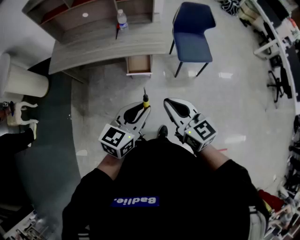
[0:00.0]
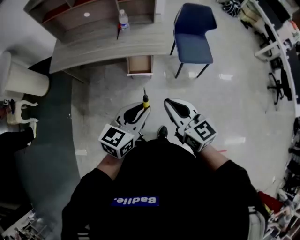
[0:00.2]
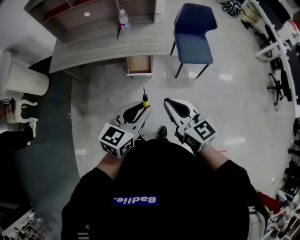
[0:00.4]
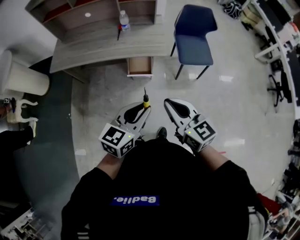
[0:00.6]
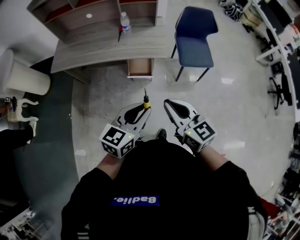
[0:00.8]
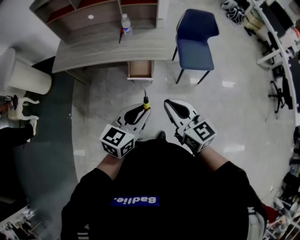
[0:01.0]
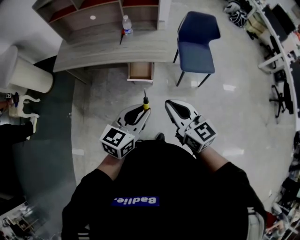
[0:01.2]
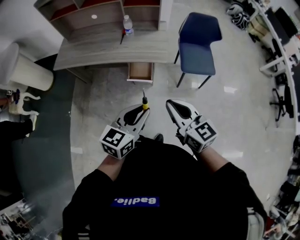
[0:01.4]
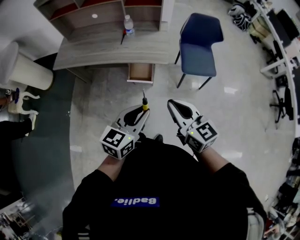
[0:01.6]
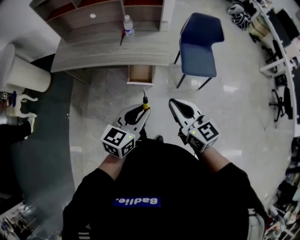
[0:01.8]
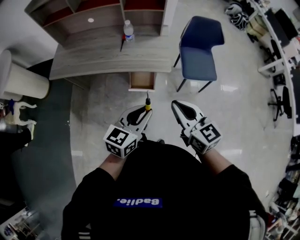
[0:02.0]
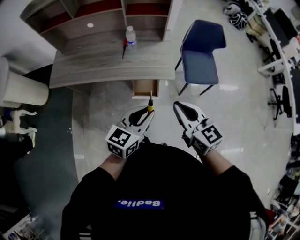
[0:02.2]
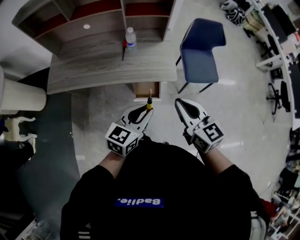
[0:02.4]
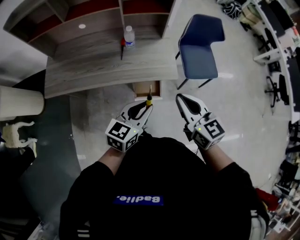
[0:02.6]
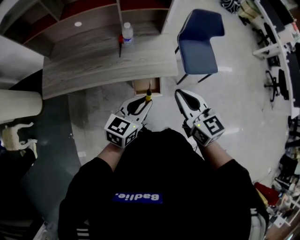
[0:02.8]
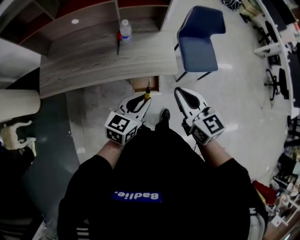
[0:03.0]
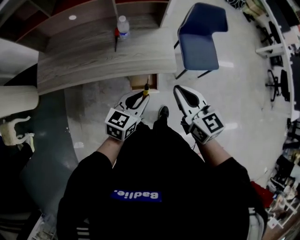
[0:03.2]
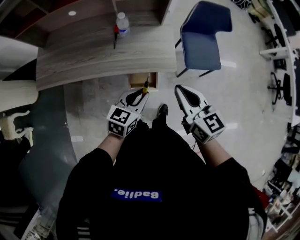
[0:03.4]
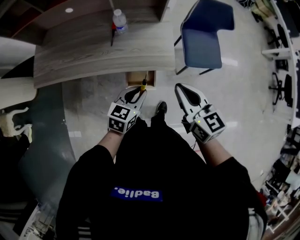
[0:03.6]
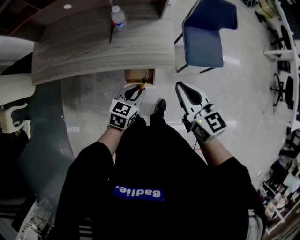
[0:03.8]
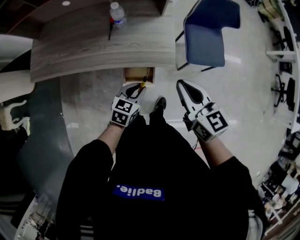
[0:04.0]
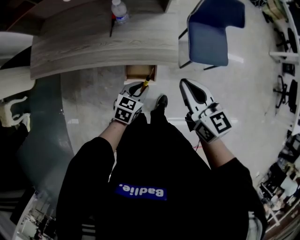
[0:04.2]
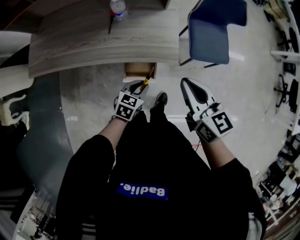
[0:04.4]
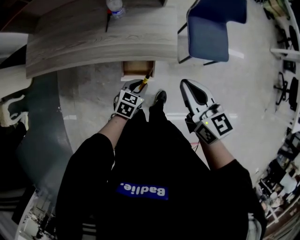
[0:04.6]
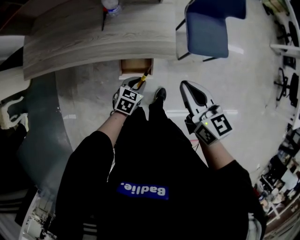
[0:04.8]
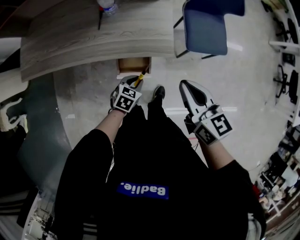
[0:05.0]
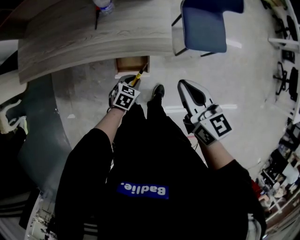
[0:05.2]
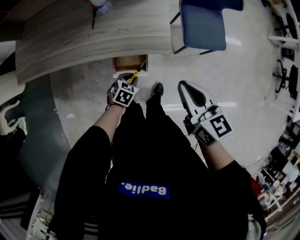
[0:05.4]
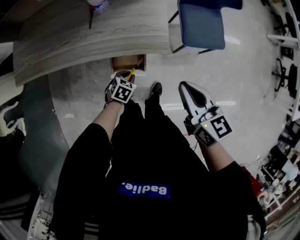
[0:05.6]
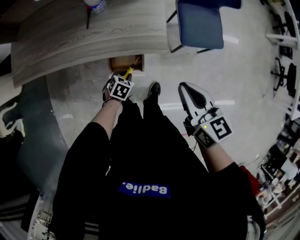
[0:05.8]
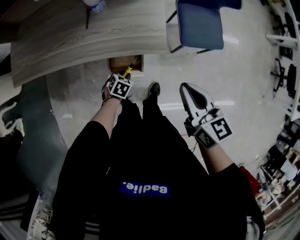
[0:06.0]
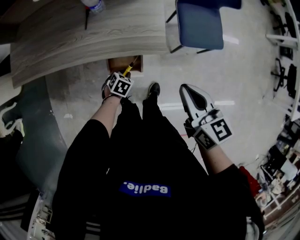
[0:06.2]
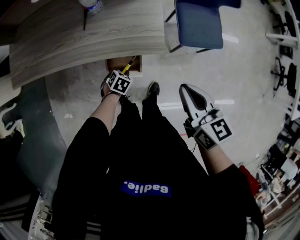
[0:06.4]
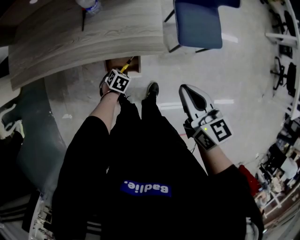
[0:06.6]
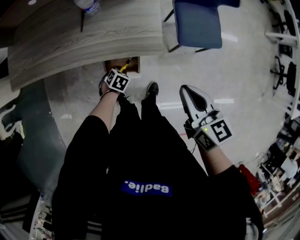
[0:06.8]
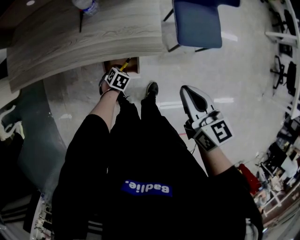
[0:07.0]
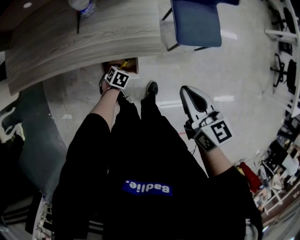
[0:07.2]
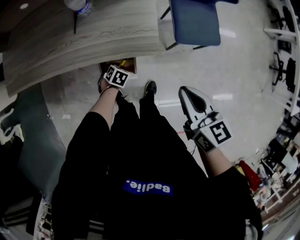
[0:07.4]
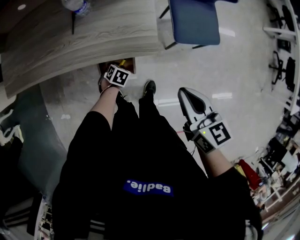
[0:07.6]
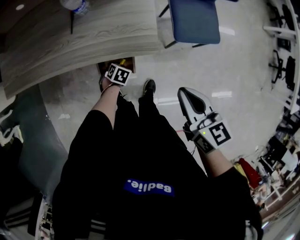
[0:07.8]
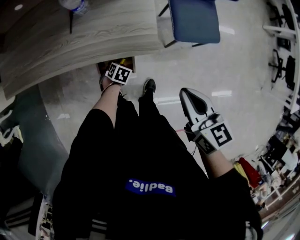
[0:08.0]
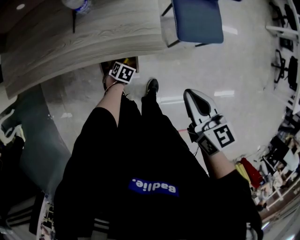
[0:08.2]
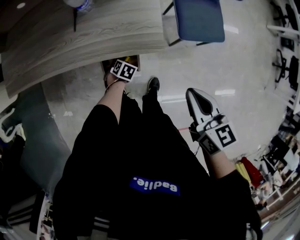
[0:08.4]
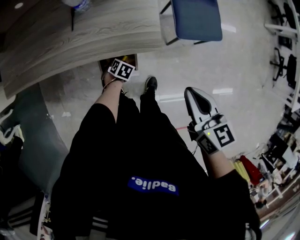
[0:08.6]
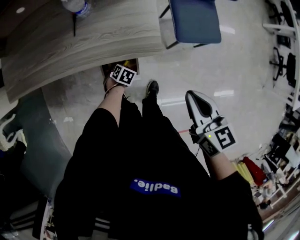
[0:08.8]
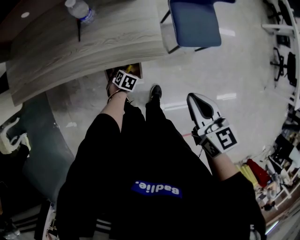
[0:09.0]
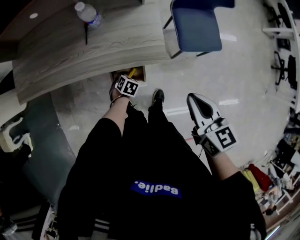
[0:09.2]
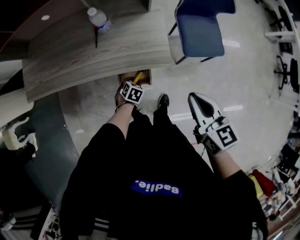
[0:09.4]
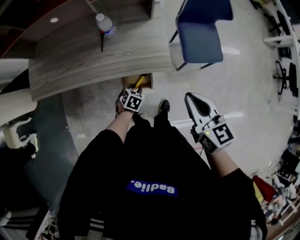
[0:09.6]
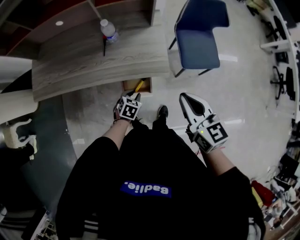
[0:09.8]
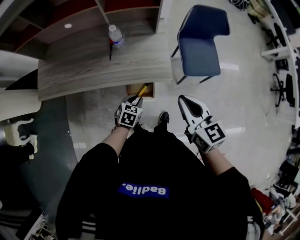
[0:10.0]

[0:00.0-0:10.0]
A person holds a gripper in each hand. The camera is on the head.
0:00.0 to 0:01.4: The right gripper changes place by roughly 5 cm.
0:01.4 to 0:02.8: The two grippers go roughly 25 cm forward and to the left.
0:02.8 to 0:04.2: The left gripper heads downward, covering approximately 20 cm, and turns by some 20 degrees. Meanwhile the right gripper travels to the right, forward and downward by about 10 cm.
0:04.2 to 0:05.8: The left gripper moves downward, roughly 20 cm, and turns by some 20 degrees, while the right gripper is displaced downward by about 5 cm.
0:05.8 to 0:07.2: The left gripper moves approximately 5 cm.
0:07.2 to 0:08.6: There are only small adjustments of the grippers.
0:08.6 to 0:10.0: The left gripper travels upward by some 25 cm, and turns by some 30 degrees, while the right gripper heads upward, covering some 10 cm.

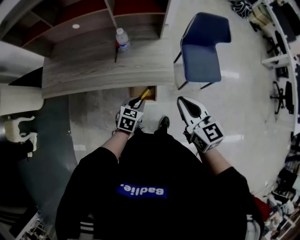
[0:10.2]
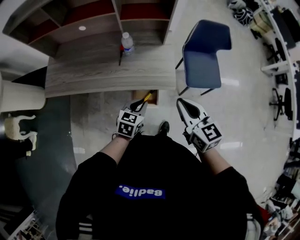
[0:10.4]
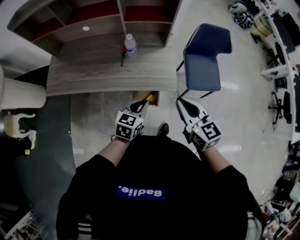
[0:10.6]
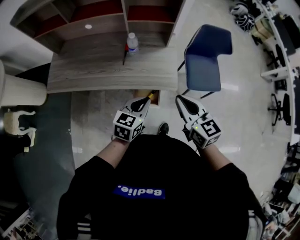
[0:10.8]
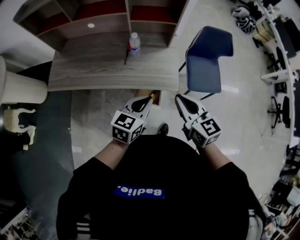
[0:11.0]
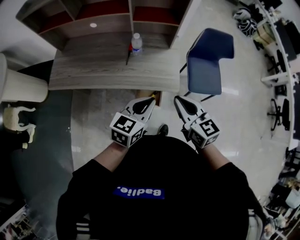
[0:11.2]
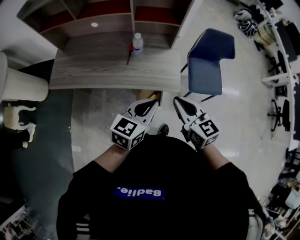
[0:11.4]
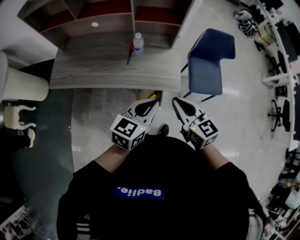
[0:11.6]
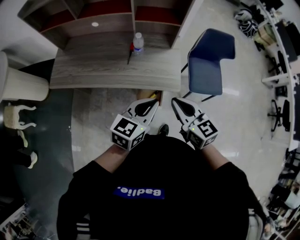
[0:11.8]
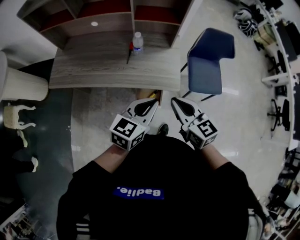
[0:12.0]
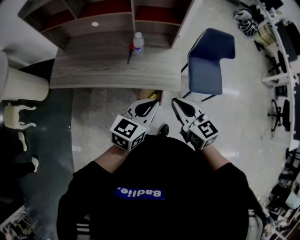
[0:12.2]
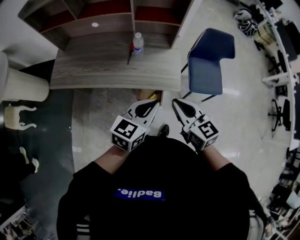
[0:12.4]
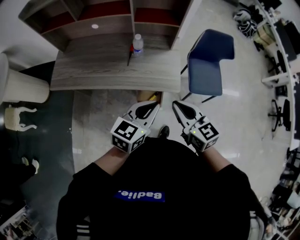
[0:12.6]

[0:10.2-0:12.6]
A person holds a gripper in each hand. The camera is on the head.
0:10.2 to 0:11.4: The left gripper is displaced upward by roughly 20 cm, and rotates roughly 30 degrees; the right gripper goes approximately 5 cm to the left.
0:11.4 to 0:12.6: The grippers stay close to where they were, moving slightly.

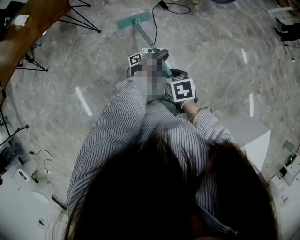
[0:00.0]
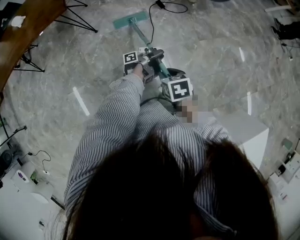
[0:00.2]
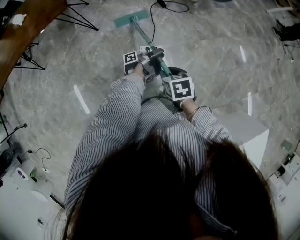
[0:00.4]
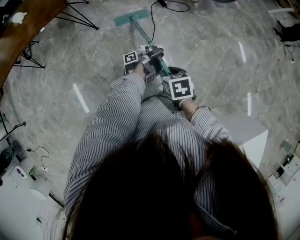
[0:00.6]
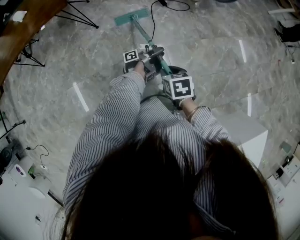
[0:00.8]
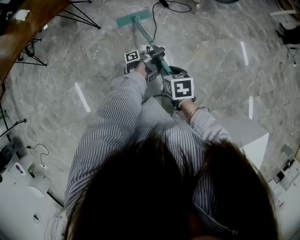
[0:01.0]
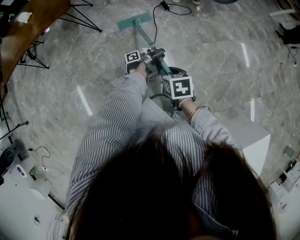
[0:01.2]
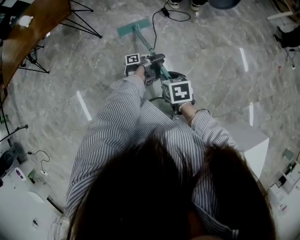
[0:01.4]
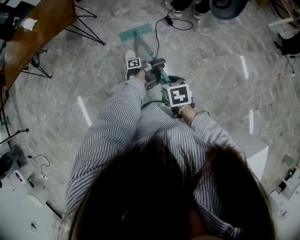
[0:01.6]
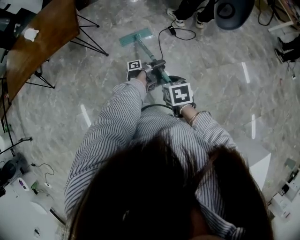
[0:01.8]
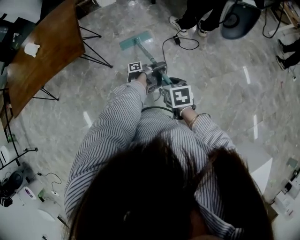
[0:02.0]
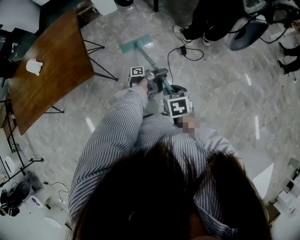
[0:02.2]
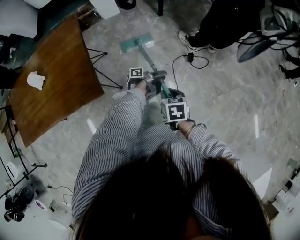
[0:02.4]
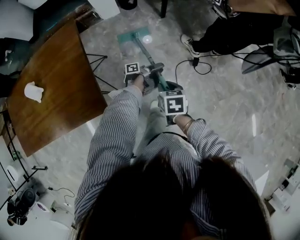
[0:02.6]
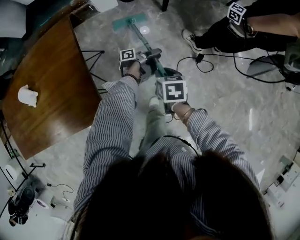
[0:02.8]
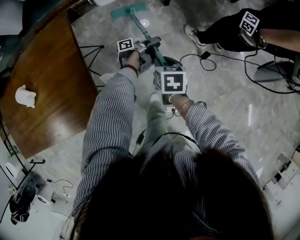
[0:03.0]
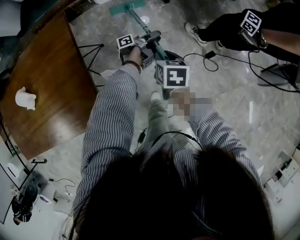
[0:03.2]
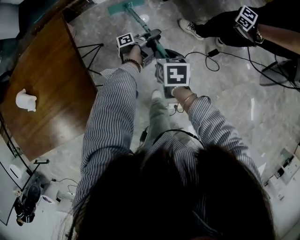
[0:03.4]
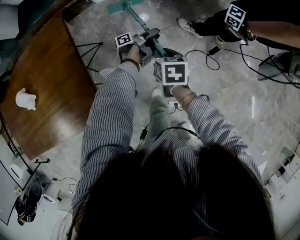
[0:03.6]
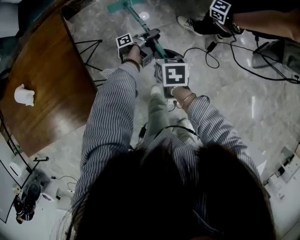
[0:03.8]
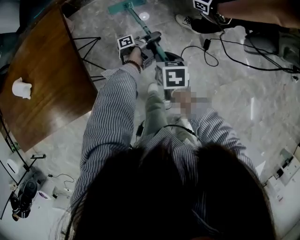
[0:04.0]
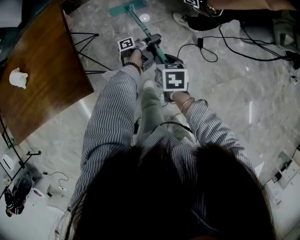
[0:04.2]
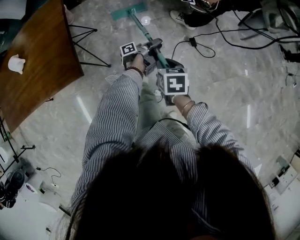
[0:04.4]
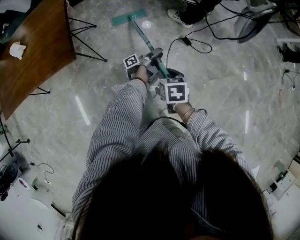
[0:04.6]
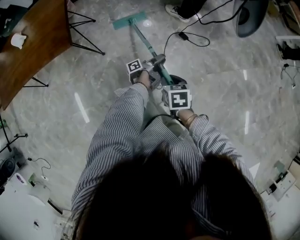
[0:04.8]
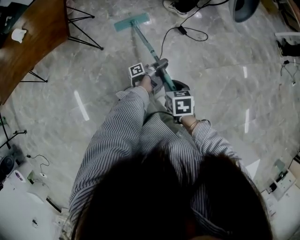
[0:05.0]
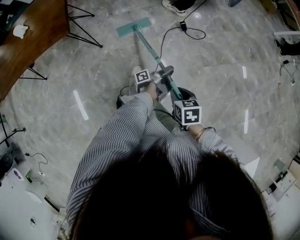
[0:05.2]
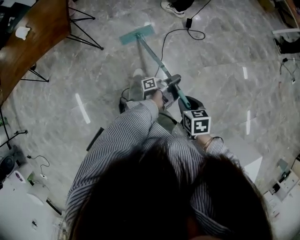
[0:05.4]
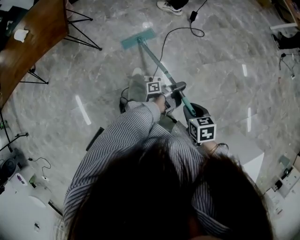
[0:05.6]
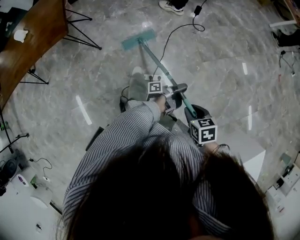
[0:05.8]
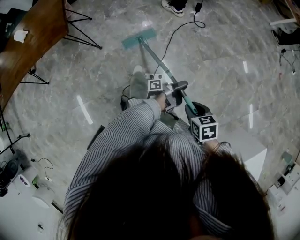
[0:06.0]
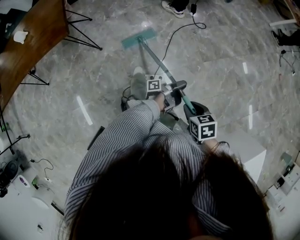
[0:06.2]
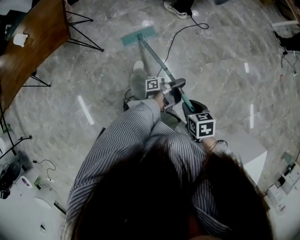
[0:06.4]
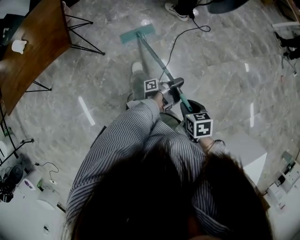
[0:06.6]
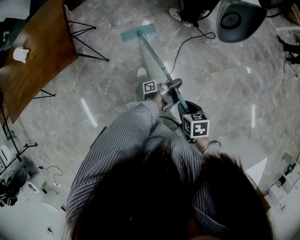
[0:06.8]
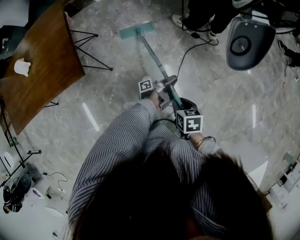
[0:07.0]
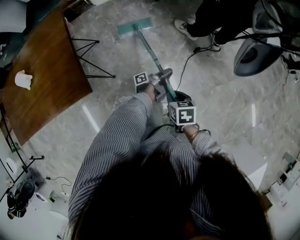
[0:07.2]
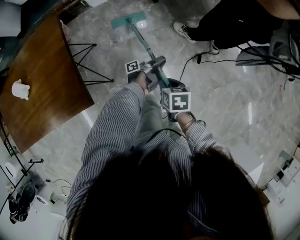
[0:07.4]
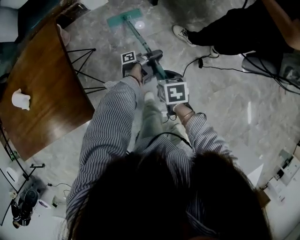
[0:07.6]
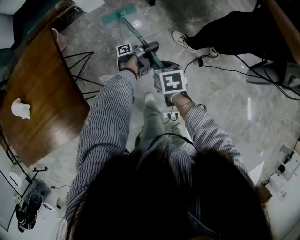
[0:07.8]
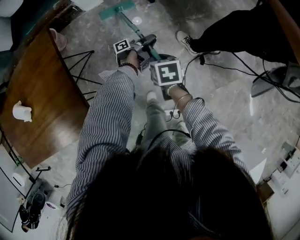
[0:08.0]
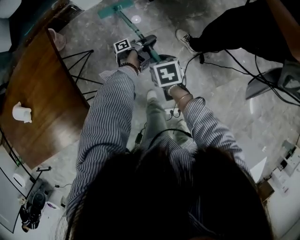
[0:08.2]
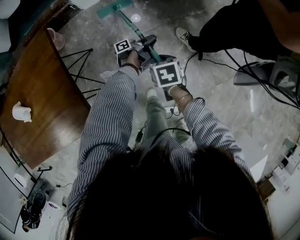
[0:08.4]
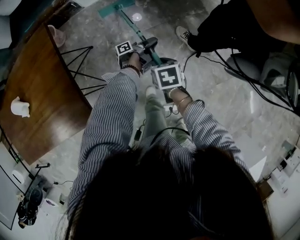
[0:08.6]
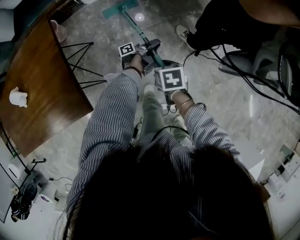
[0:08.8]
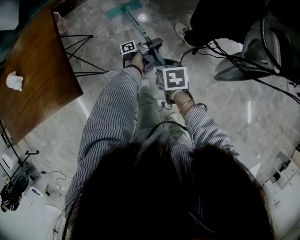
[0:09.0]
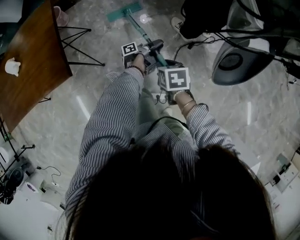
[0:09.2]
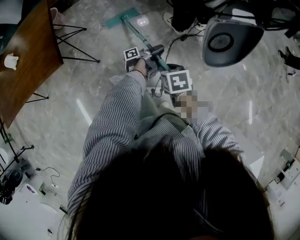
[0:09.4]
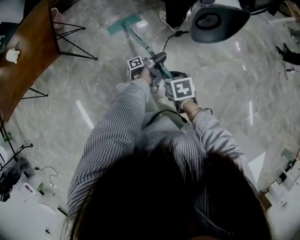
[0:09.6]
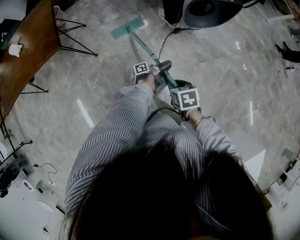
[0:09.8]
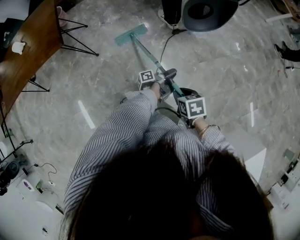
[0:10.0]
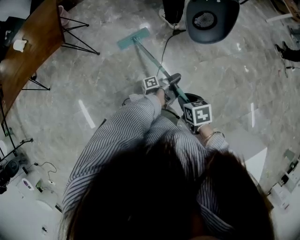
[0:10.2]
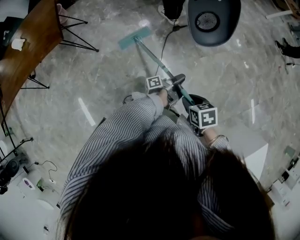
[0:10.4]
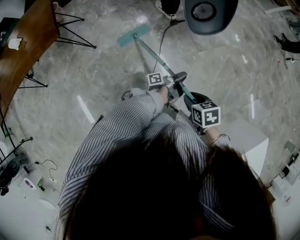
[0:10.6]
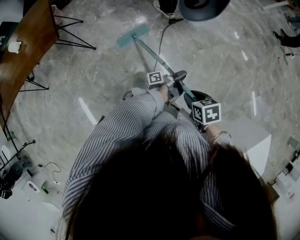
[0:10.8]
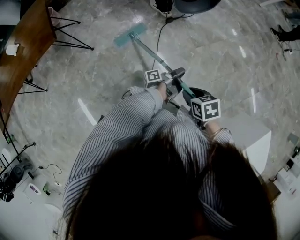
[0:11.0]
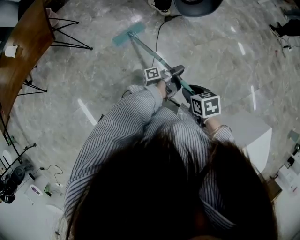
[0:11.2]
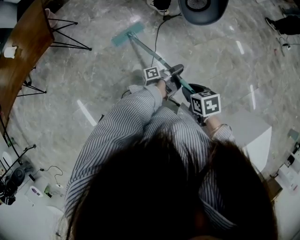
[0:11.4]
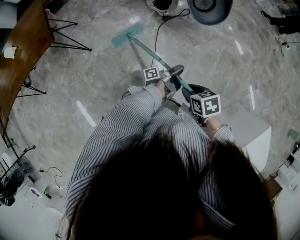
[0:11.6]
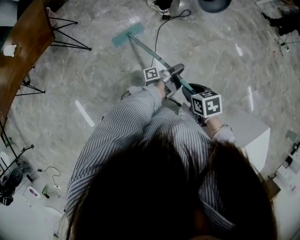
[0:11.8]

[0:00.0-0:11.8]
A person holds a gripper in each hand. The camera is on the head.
0:01.4 to 0:03.0: The right gripper ends up some 70 cm from where it was.
0:03.0 to 0:04.4: The right gripper changes place by about 25 cm.
0:04.4 to 0:06.0: The right gripper changes place by some 50 cm.
0:06.0 to 0:07.4: The right gripper shifts by some 60 cm.
0:08.8 to 0:10.4: The right gripper changes place by approximately 60 cm.
